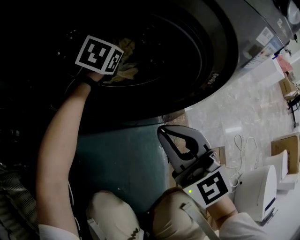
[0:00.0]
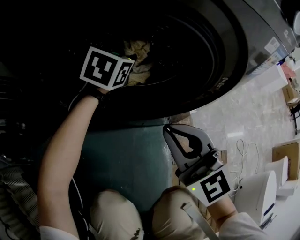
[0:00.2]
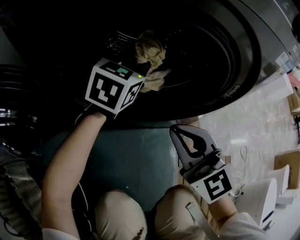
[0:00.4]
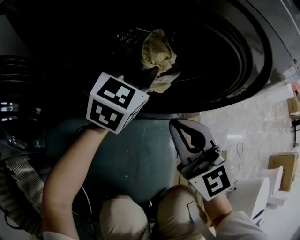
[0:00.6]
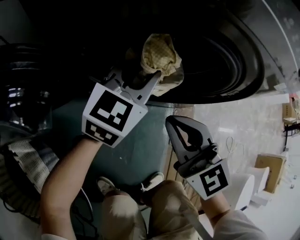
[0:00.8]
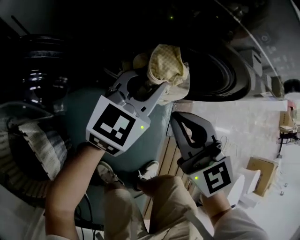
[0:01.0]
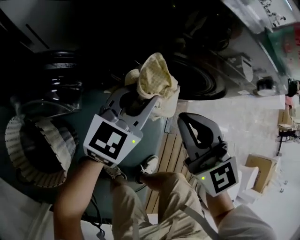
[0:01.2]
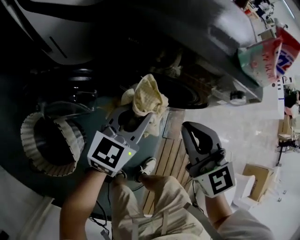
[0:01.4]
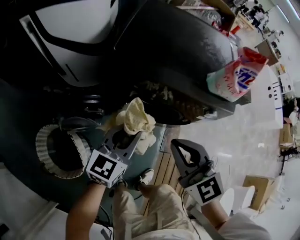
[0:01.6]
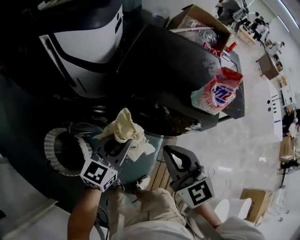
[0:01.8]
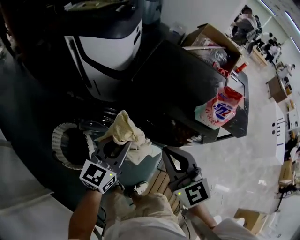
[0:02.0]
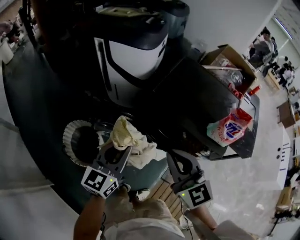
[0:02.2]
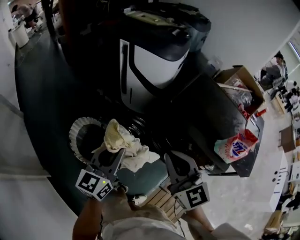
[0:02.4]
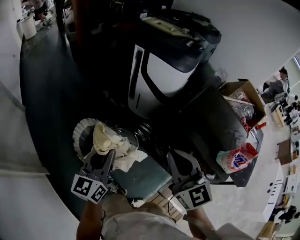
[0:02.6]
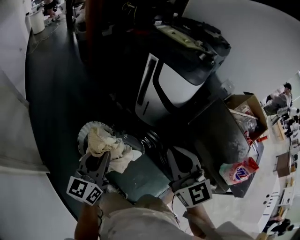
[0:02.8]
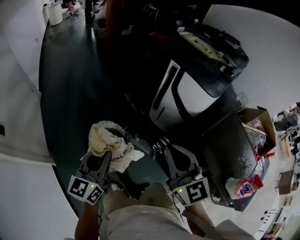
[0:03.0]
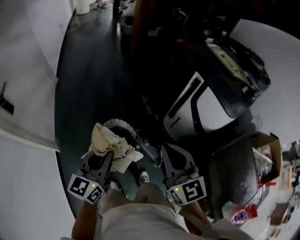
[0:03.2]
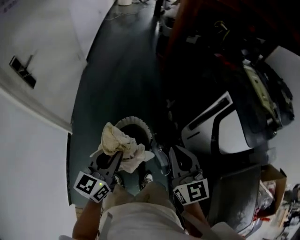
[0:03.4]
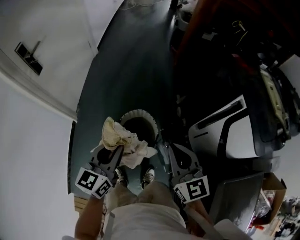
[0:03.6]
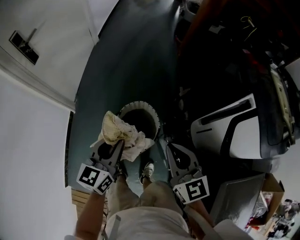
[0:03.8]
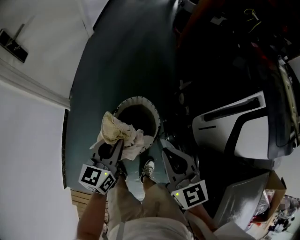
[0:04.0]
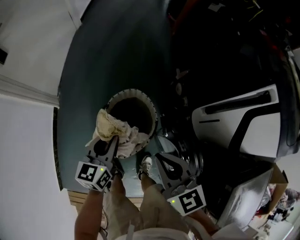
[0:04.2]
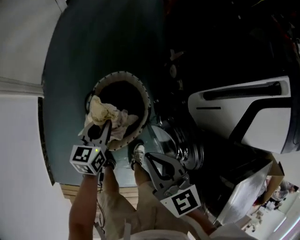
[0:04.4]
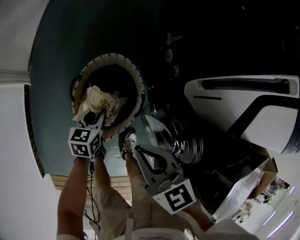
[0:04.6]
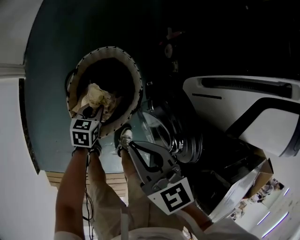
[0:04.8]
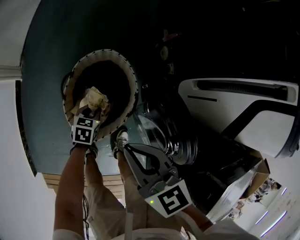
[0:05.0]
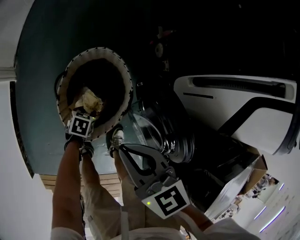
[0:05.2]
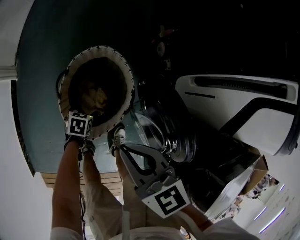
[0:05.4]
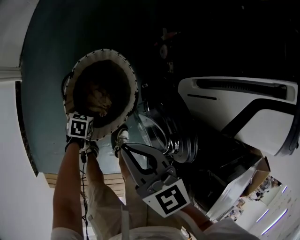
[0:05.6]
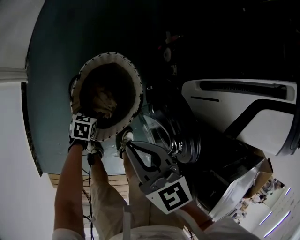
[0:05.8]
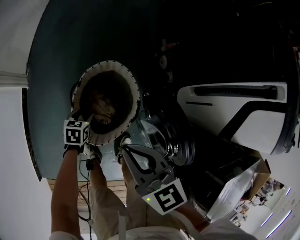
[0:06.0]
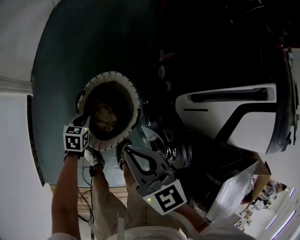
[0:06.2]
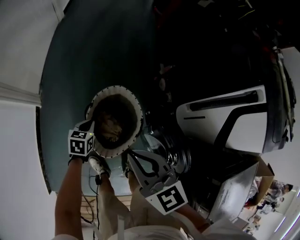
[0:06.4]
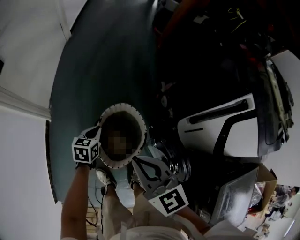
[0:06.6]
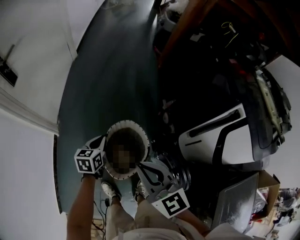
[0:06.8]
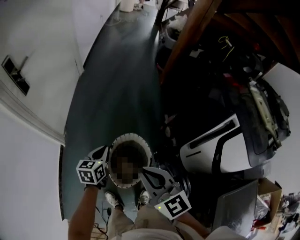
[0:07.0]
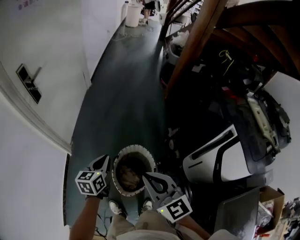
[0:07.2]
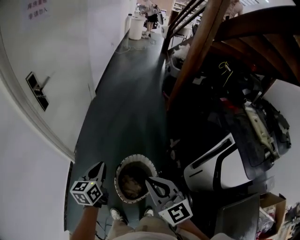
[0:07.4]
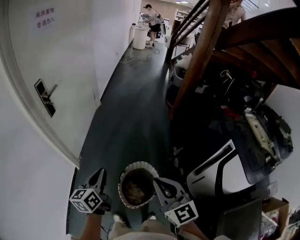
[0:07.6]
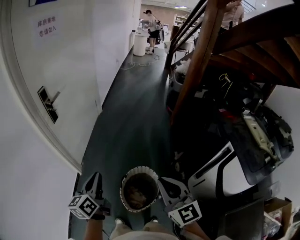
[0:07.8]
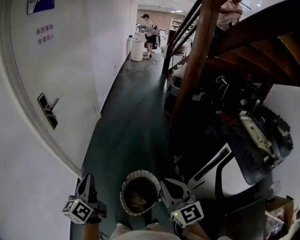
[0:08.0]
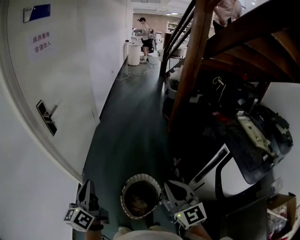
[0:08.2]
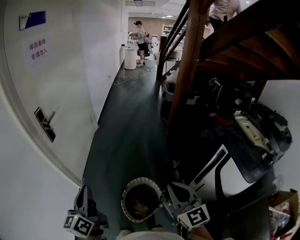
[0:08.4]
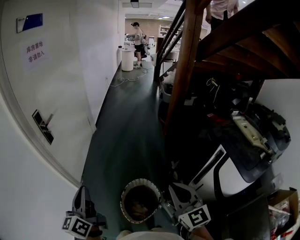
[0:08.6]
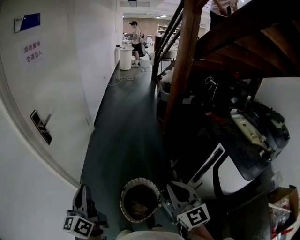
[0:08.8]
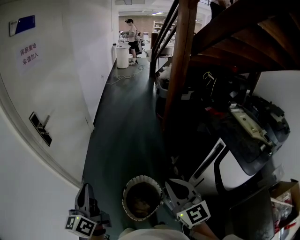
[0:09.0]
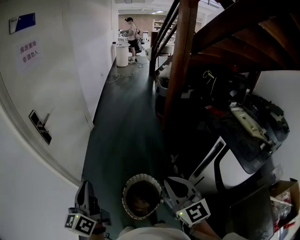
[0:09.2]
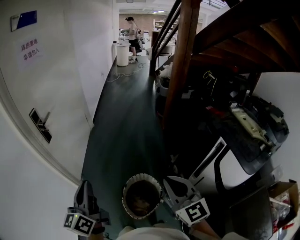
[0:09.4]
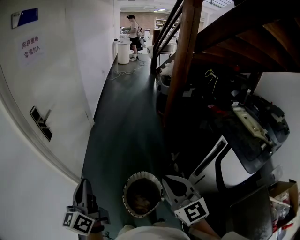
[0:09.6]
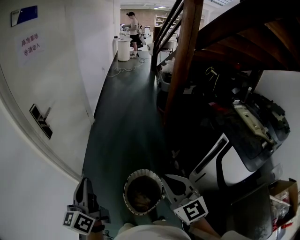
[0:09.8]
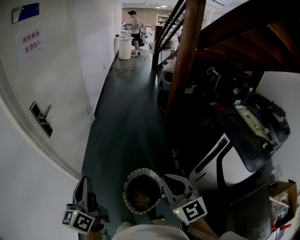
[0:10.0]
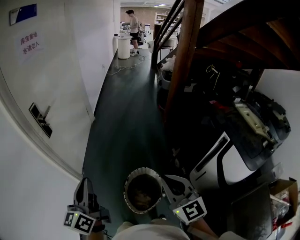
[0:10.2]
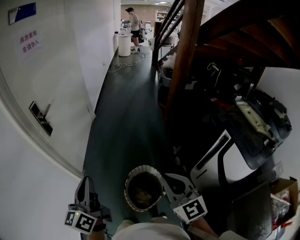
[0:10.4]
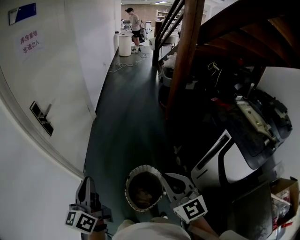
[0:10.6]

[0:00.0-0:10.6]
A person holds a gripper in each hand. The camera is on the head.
0:00.0 to 0:01.6: The right gripper is displaced upward by about 40 cm; the left gripper goes approximately 60 cm upward and backward, and swivels approximately 30 degrees.
0:01.6 to 0:03.0: The left gripper ends up roughly 50 cm from where it was, and swivels approximately 60 degrees, while the right gripper ends up some 40 cm from where it was, and rotates some 40 degrees.
0:03.0 to 0:04.6: The two grippers go roughly 50 cm downward. The left gripper tilts its fingers some 40 degrees downward. Meanwhile the right gripper rotates some 50 degrees.
0:04.6 to 0:06.0: The right gripper moves roughly 5 cm. The left gripper travels downward and to the left by some 10 cm, and opens.
0:06.0 to 0:07.6: The left gripper is displaced upward by approximately 60 cm, points its fingers roughly 50 degrees further upward, and closes. Meanwhile the right gripper goes roughly 35 cm upward, and changes its angle by roughly 30 degrees.
0:07.6 to 0:09.0: The right gripper travels to the right and upward by approximately 10 cm, while the left gripper moves upward, approximately 15 cm.
0:09.0 to 0:10.6: The grippers make only small movements.

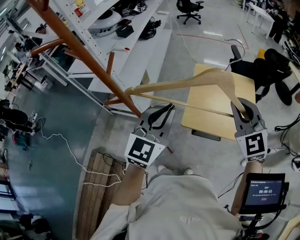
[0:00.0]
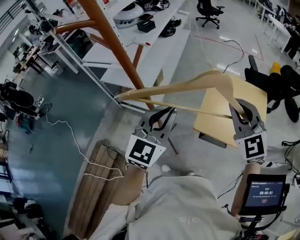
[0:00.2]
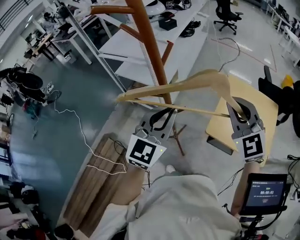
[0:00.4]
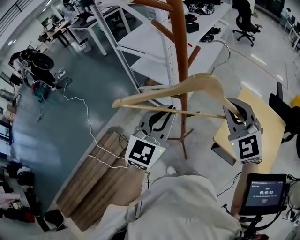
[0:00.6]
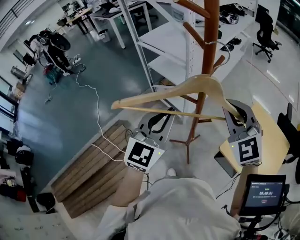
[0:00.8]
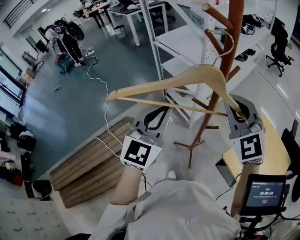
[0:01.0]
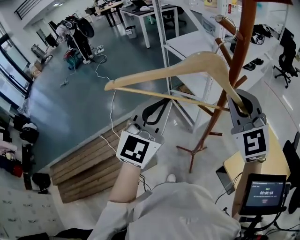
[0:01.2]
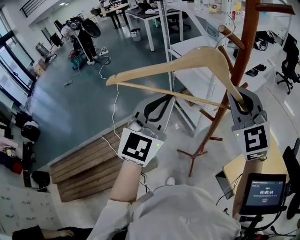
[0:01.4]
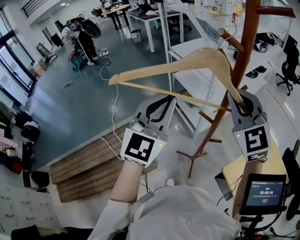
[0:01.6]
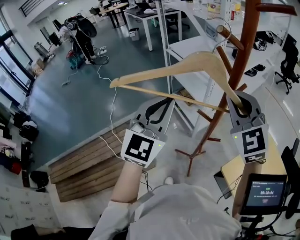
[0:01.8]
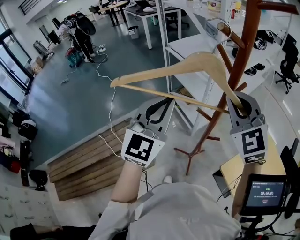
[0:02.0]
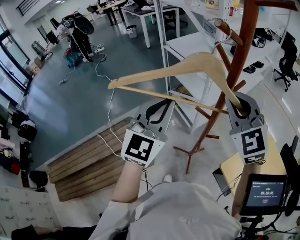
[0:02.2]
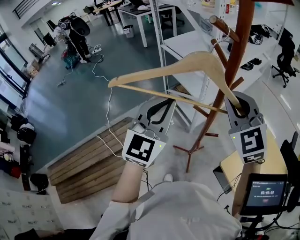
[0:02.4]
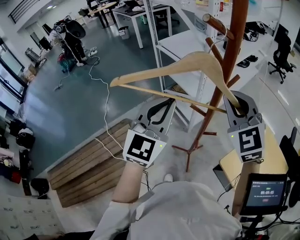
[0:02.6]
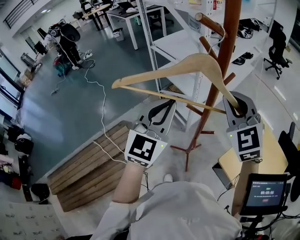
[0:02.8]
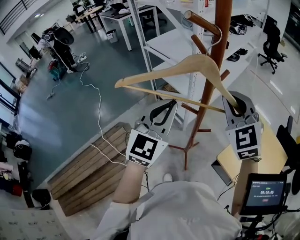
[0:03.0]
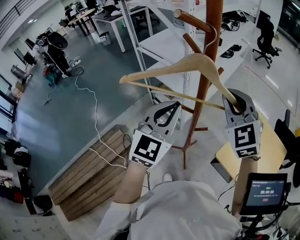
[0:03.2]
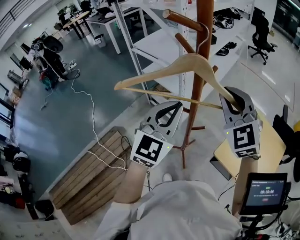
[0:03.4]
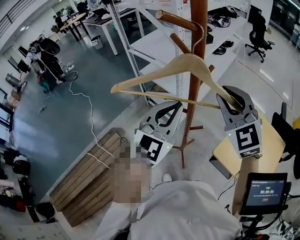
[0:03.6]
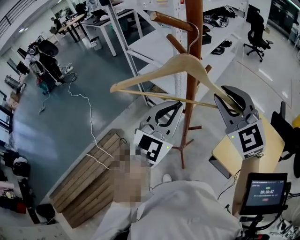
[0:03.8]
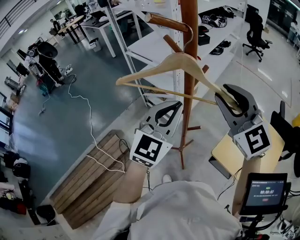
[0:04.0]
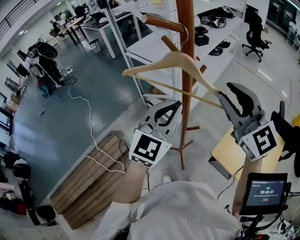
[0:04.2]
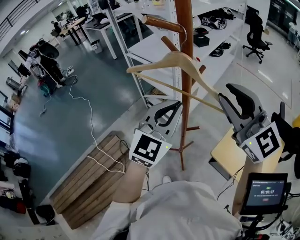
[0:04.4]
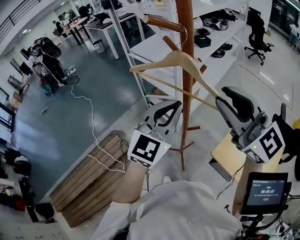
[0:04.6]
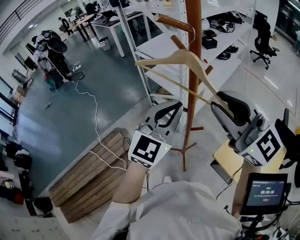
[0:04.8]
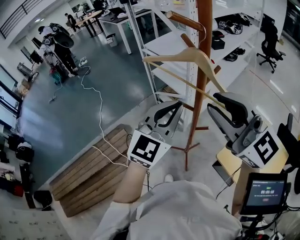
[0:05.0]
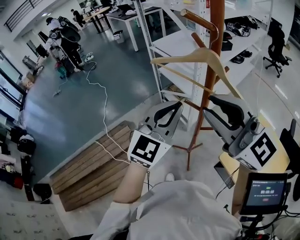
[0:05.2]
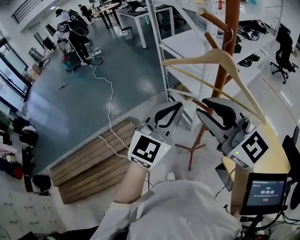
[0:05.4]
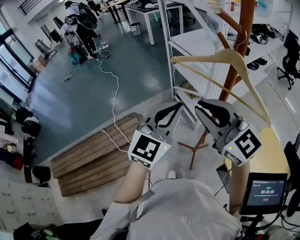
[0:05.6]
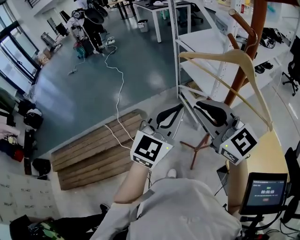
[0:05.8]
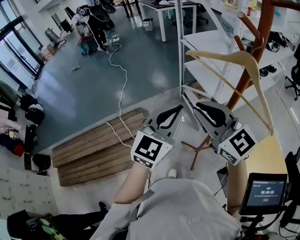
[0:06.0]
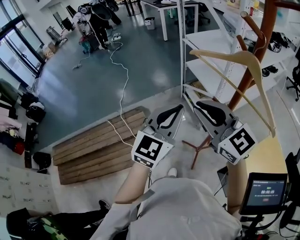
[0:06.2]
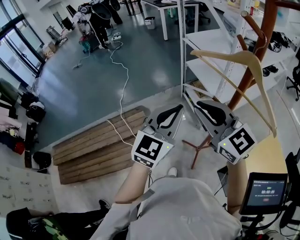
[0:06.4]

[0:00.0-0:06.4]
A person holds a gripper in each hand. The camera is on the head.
0:00.0 to 0:01.6: The left gripper ends up approximately 35 cm from where it was, and swivels about 50 degrees, while the right gripper ends up some 40 cm from where it was, and changes its angle by about 40 degrees.
0:01.6 to 0:03.2: Both grippers travel together to the right and downward, approximately 10 cm.
0:03.2 to 0:04.8: The right gripper is displaced backward and upward by approximately 15 cm, turns by roughly 40 degrees, and opens up.
0:04.8 to 0:06.4: The left gripper shifts roughly 15 cm to the left, and turns by some 20 degrees, while the right gripper goes about 20 cm to the left and downward, and changes its angle by about 20 degrees.

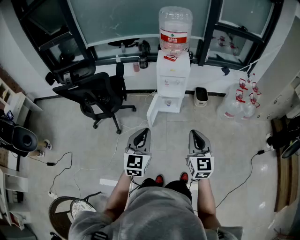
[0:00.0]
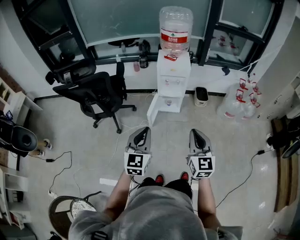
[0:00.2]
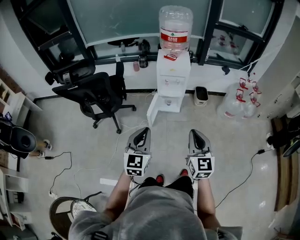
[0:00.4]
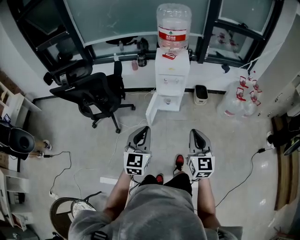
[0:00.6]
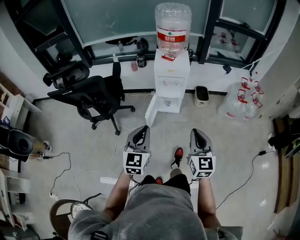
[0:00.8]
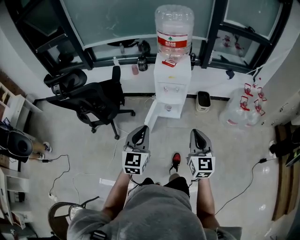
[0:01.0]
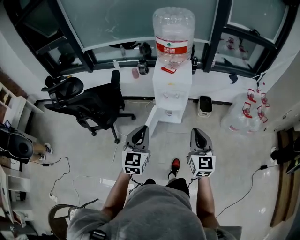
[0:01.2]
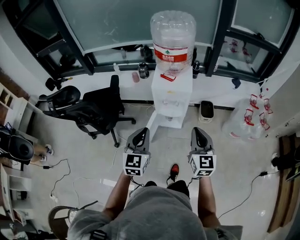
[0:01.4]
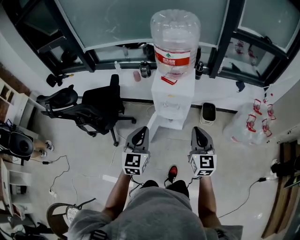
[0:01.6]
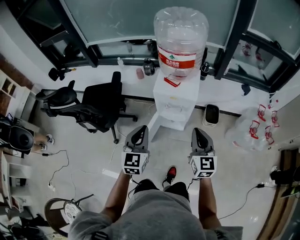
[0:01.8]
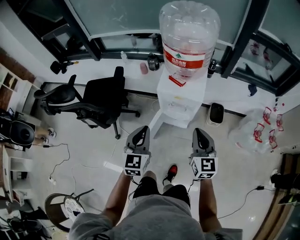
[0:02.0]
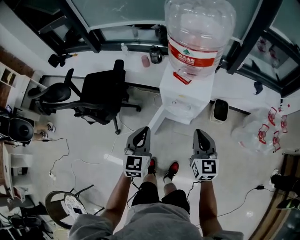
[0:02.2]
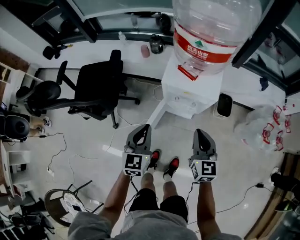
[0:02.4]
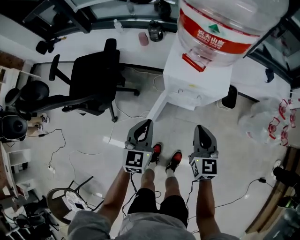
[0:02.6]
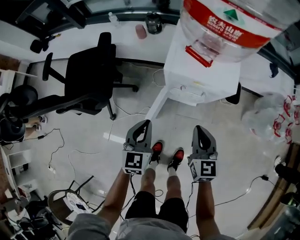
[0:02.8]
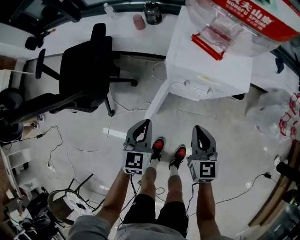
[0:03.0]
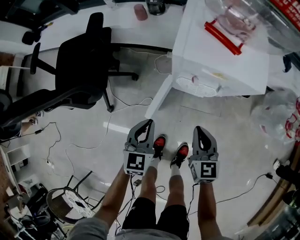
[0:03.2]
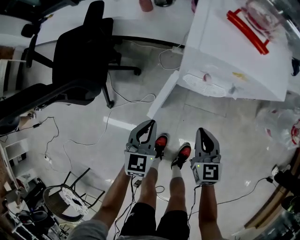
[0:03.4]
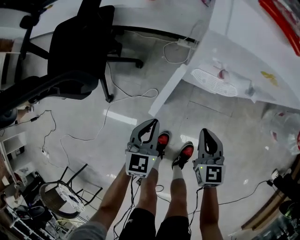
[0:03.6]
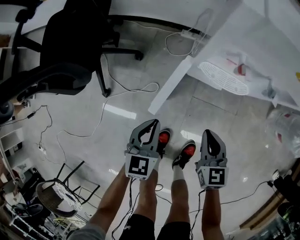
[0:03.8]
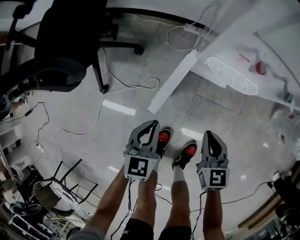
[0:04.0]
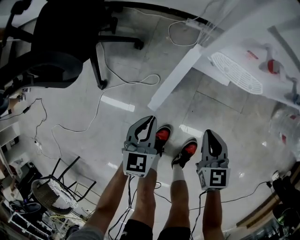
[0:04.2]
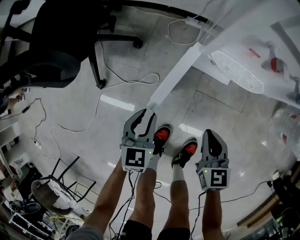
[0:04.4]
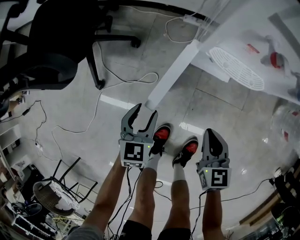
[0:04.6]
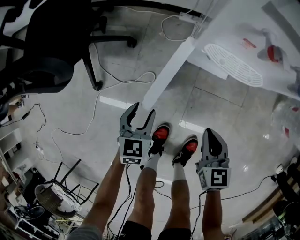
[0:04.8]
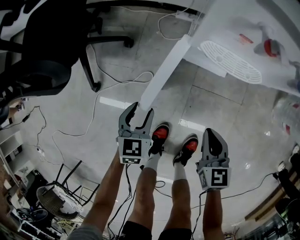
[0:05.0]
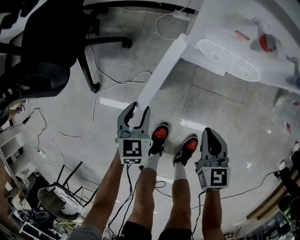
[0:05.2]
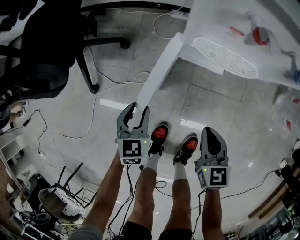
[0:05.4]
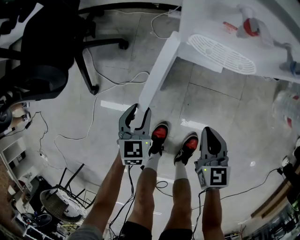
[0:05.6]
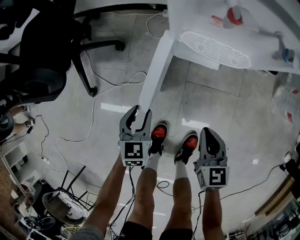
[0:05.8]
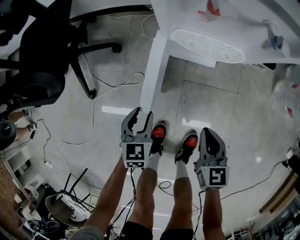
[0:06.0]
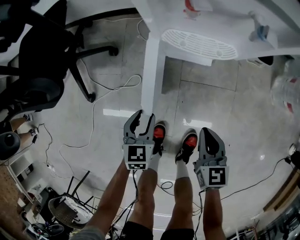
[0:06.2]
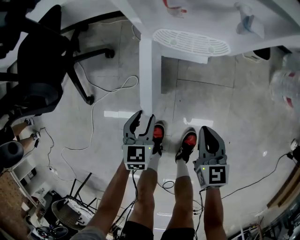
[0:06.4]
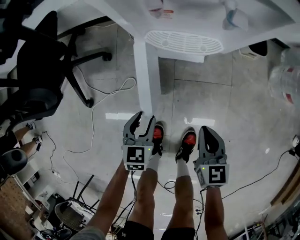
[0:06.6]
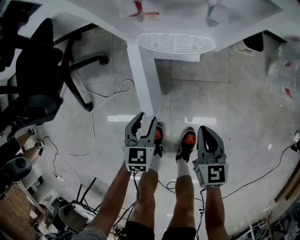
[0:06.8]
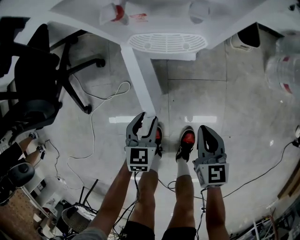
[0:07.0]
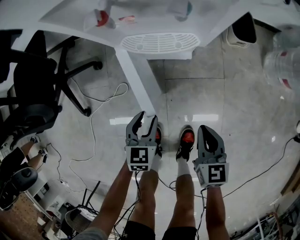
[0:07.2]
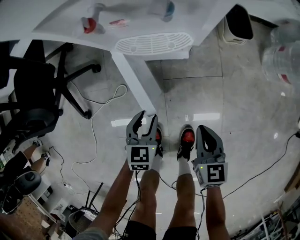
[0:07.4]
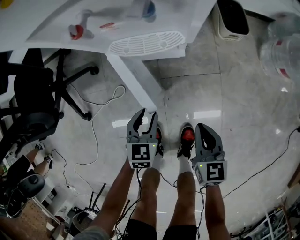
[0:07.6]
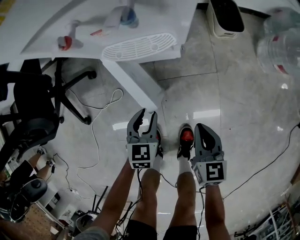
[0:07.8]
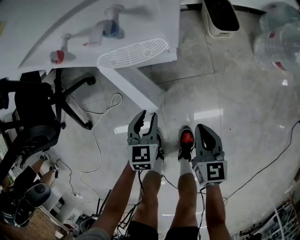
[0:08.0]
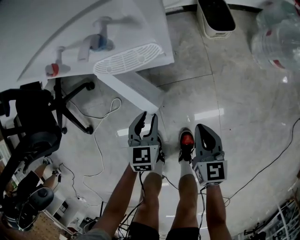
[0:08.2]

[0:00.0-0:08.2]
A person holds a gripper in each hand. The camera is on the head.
0:00.0 to 0:01.6: Both grippers move forward, roughly 30 cm.
0:01.6 to 0:03.2: Both grippers travel together downward, approximately 35 cm. The right gripper changes its angle by roughly 20 degrees.
0:03.2 to 0:05.0: Both grippers move downward, about 25 cm. The left gripper opens its fingers.
0:05.0 to 0:06.6: The two grippers go some 10 cm to the right.
0:06.6 to 0:08.2: The two grippers go approximately 10 cm to the right.
